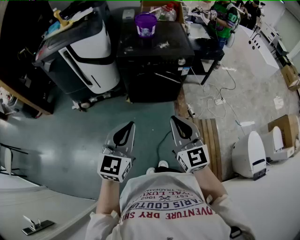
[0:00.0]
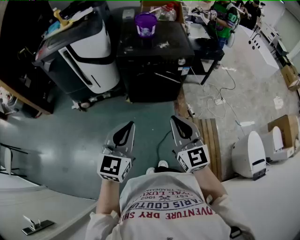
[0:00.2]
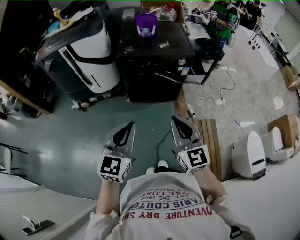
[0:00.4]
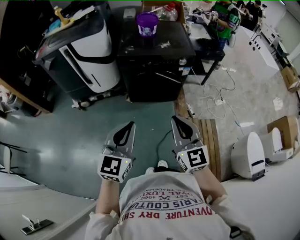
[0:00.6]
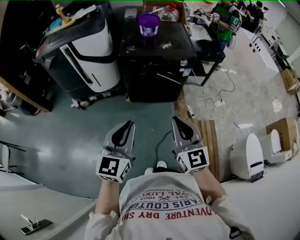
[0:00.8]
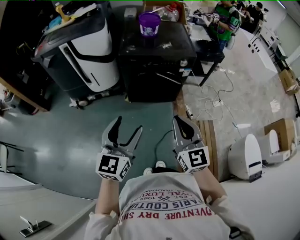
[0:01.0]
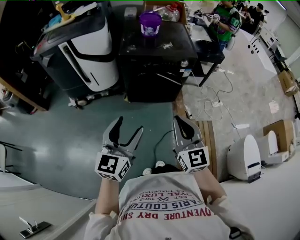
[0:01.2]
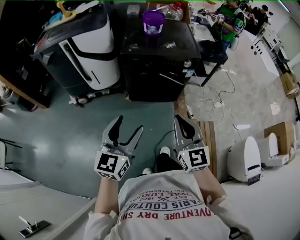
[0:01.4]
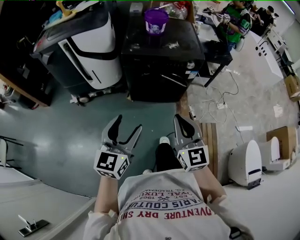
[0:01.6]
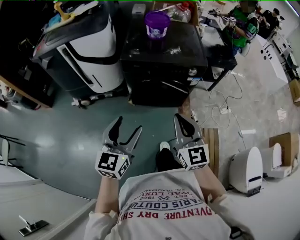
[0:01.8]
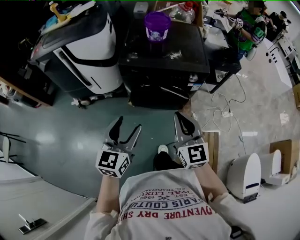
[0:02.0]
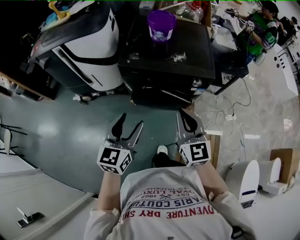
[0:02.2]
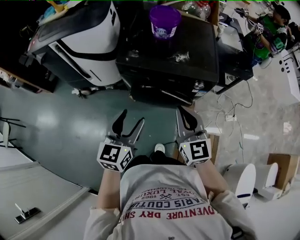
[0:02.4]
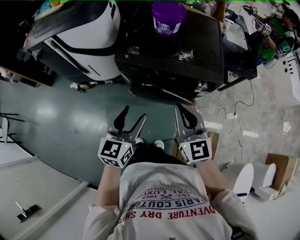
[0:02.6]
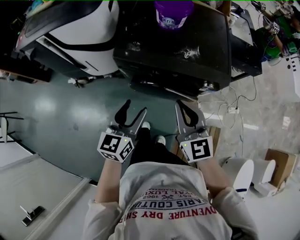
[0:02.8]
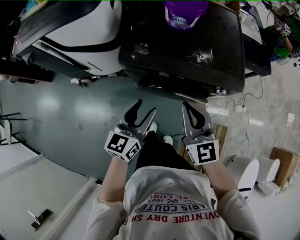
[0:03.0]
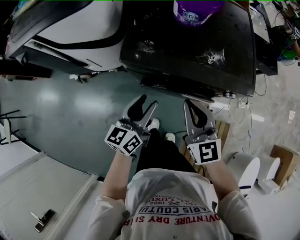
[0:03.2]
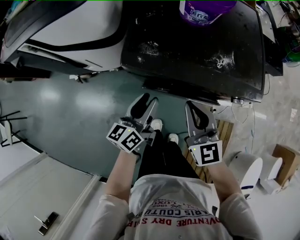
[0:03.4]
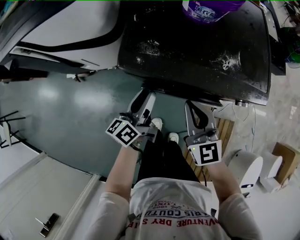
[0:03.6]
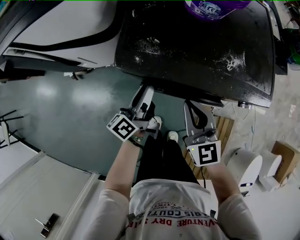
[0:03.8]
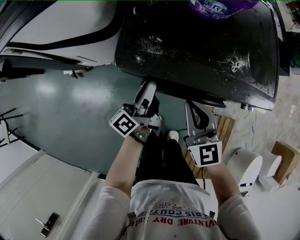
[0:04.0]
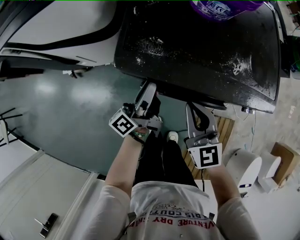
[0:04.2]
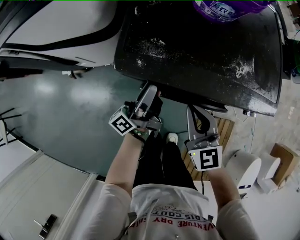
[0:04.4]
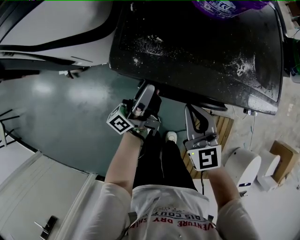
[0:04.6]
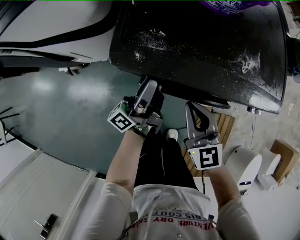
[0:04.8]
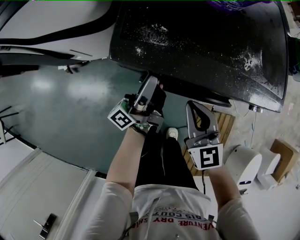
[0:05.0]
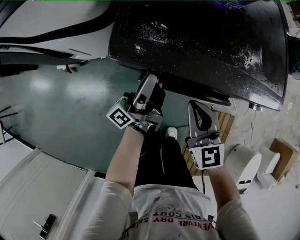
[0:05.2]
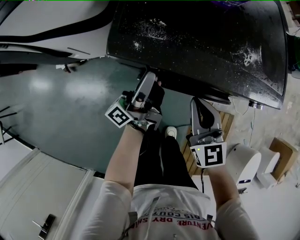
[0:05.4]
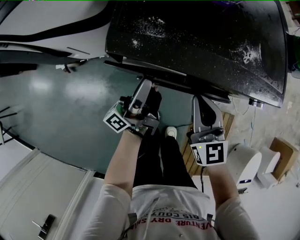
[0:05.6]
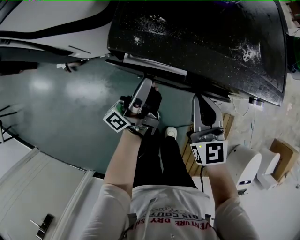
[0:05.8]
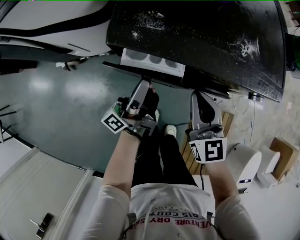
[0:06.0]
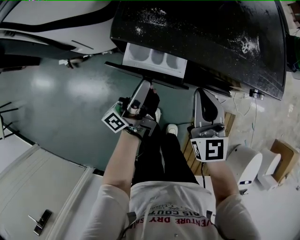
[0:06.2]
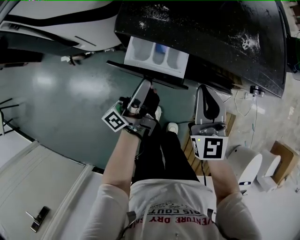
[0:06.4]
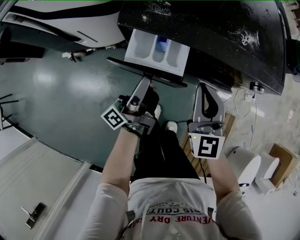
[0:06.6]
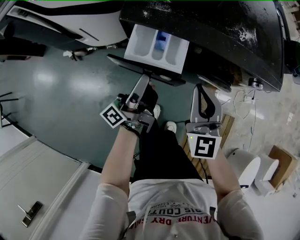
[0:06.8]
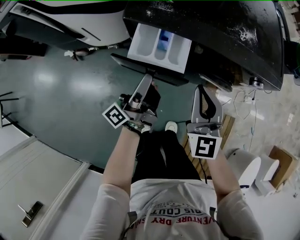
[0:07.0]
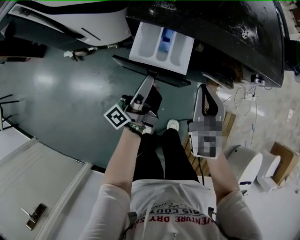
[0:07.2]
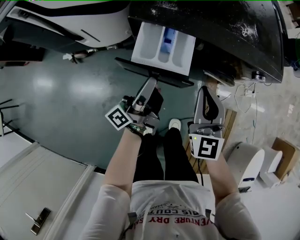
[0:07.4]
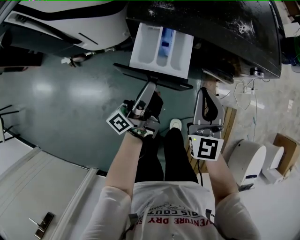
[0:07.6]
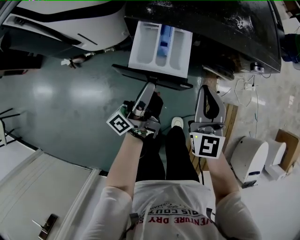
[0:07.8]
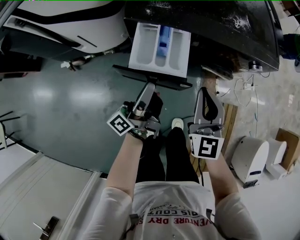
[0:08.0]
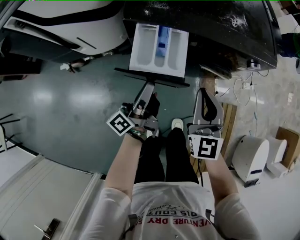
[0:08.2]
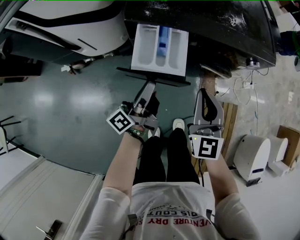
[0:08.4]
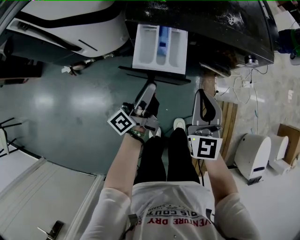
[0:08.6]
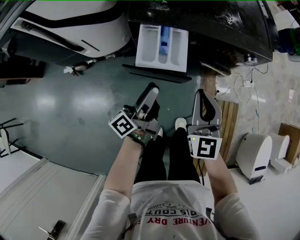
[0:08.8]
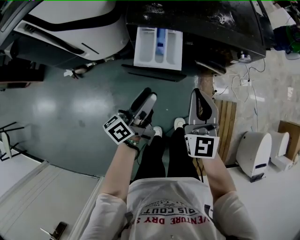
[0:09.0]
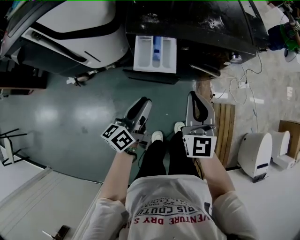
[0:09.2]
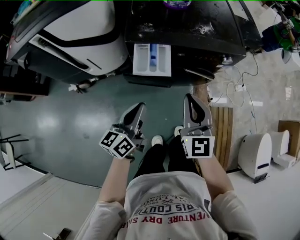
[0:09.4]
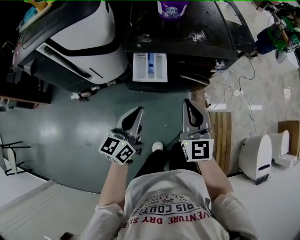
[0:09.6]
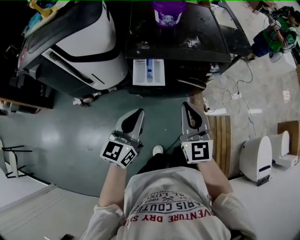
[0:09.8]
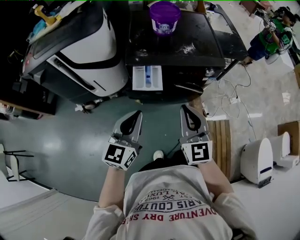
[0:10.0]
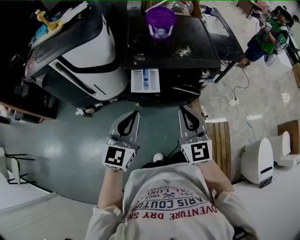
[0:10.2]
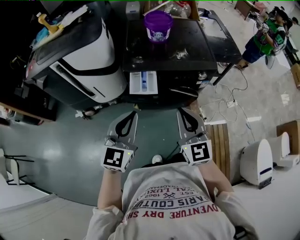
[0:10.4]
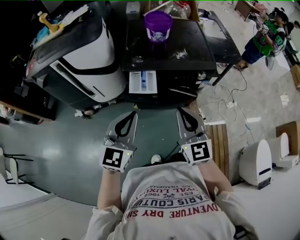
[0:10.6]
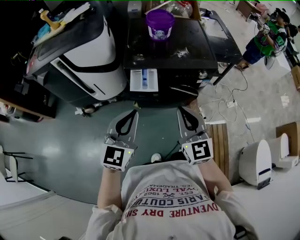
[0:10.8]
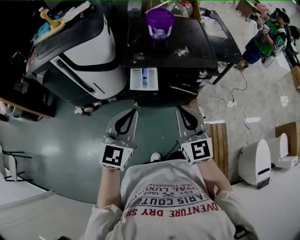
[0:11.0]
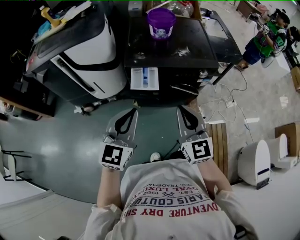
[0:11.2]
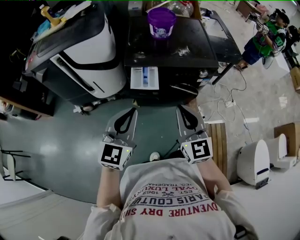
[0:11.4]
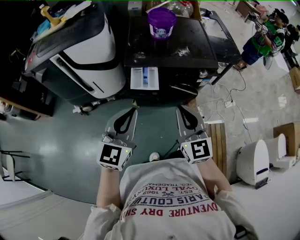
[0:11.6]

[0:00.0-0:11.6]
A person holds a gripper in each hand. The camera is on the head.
0:00.0 to 0:01.4: The left gripper ends up some 5 cm from where it was, and opens.
0:01.4 to 0:02.8: The two grippers go about 35 cm forward.
0:02.8 to 0:04.4: Both grippers travel together downward and forward, roughly 25 cm. The left gripper twists some 60 degrees counterclockwise, seen from behind.
0:04.4 to 0:05.8: The grippers make only small movements.
0:05.8 to 0:07.2: The grippers both shift backward by some 10 cm.
0:07.2 to 0:08.8: Both grippers move backward, roughly 5 cm. The left gripper opens up.
0:08.8 to 0:10.2: The right gripper heads upward and backward, covering about 20 cm; the left gripper shifts roughly 25 cm upward, rolls clockwise, seen from behind, by approximately 80 degrees, and closes.
0:10.2 to 0:11.6: The grippers move only a little.

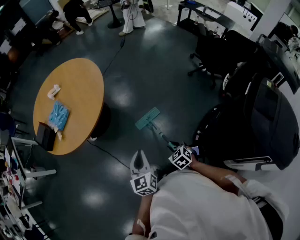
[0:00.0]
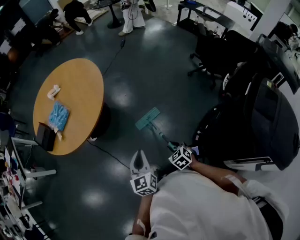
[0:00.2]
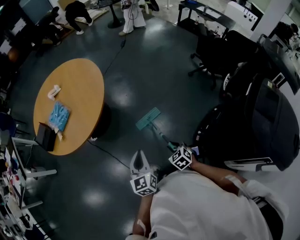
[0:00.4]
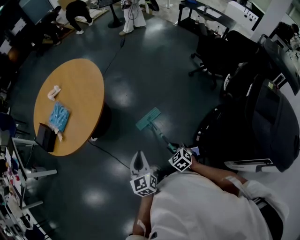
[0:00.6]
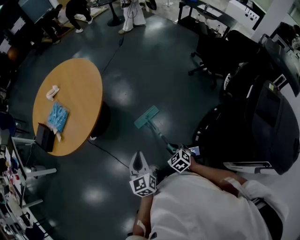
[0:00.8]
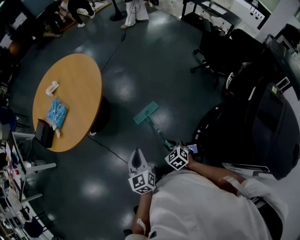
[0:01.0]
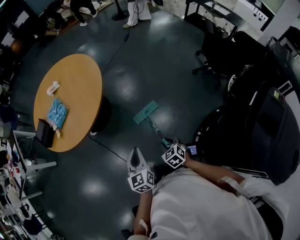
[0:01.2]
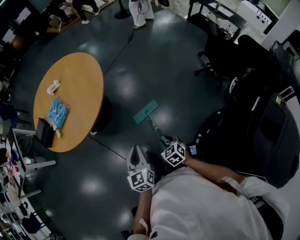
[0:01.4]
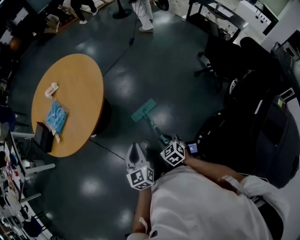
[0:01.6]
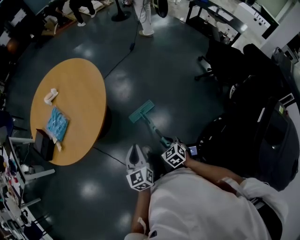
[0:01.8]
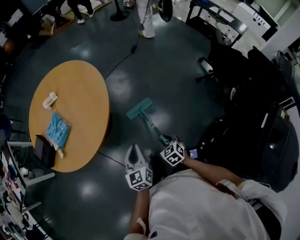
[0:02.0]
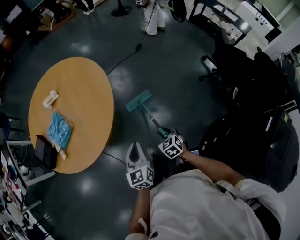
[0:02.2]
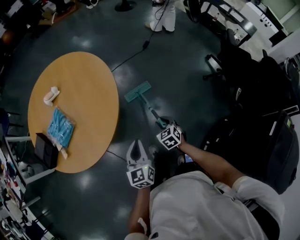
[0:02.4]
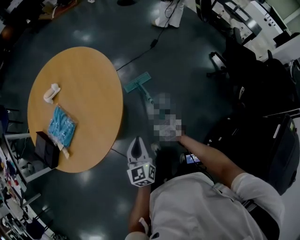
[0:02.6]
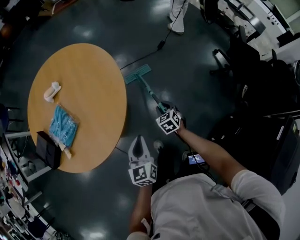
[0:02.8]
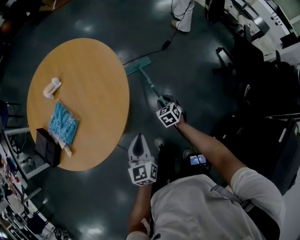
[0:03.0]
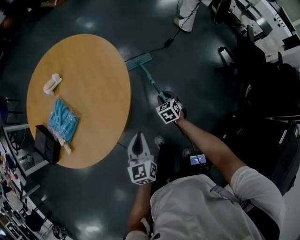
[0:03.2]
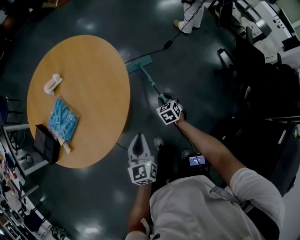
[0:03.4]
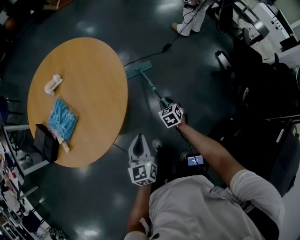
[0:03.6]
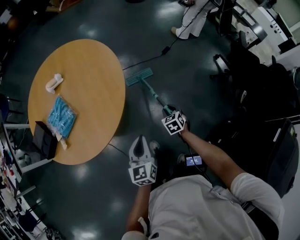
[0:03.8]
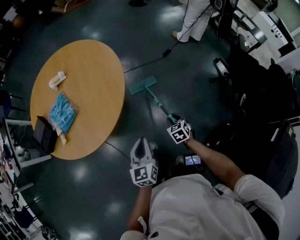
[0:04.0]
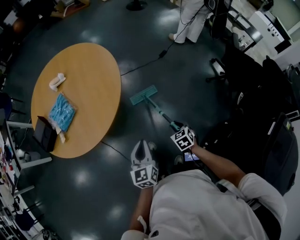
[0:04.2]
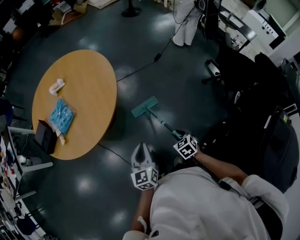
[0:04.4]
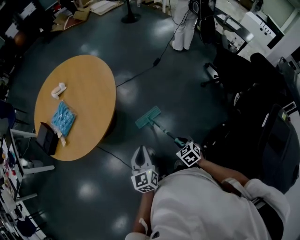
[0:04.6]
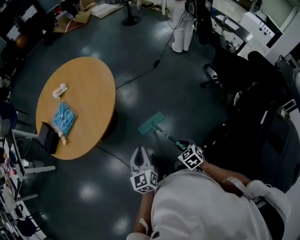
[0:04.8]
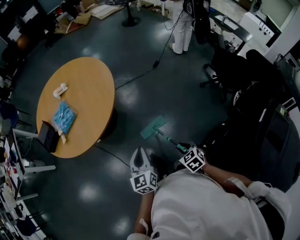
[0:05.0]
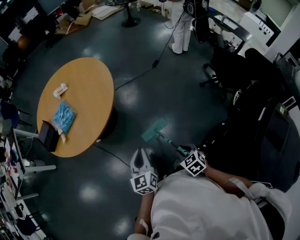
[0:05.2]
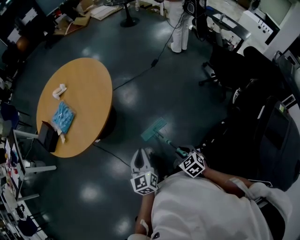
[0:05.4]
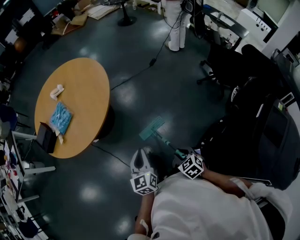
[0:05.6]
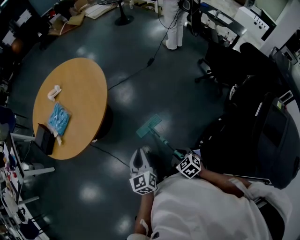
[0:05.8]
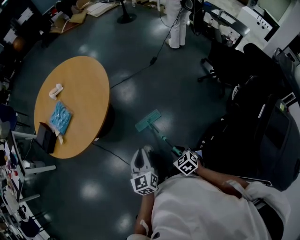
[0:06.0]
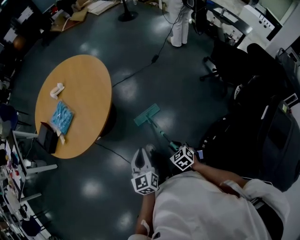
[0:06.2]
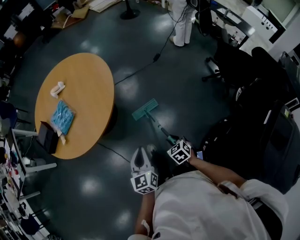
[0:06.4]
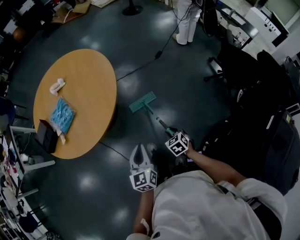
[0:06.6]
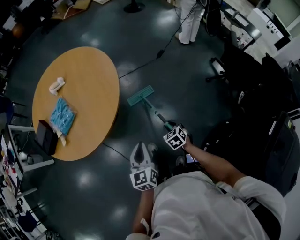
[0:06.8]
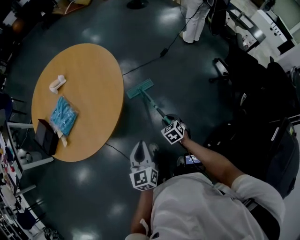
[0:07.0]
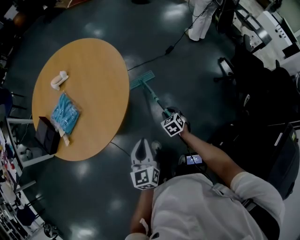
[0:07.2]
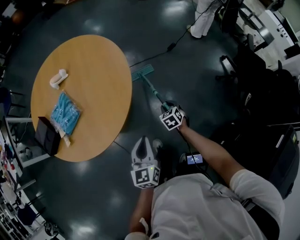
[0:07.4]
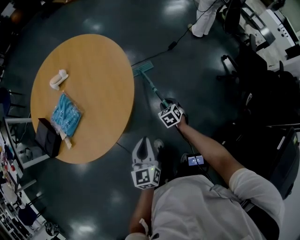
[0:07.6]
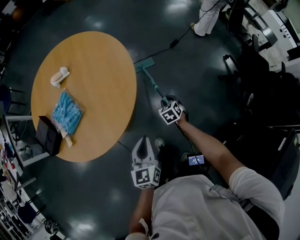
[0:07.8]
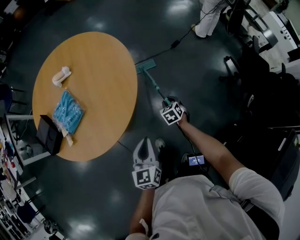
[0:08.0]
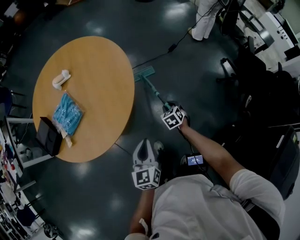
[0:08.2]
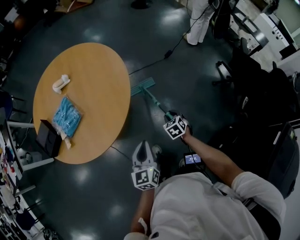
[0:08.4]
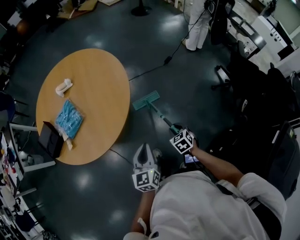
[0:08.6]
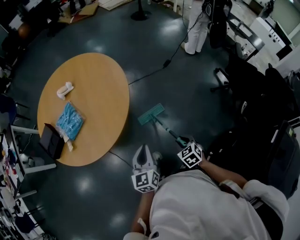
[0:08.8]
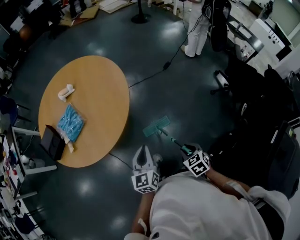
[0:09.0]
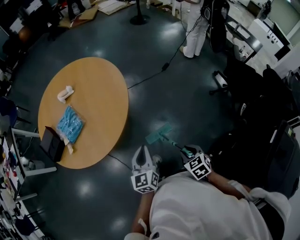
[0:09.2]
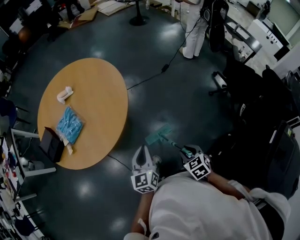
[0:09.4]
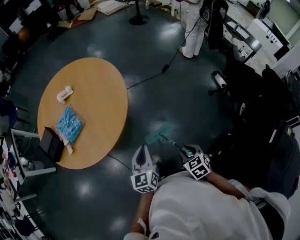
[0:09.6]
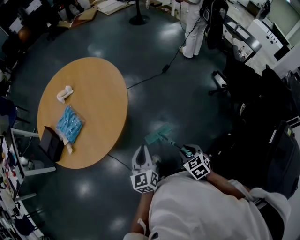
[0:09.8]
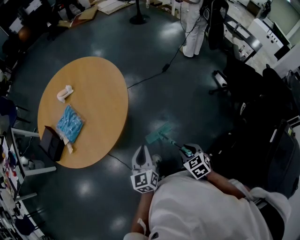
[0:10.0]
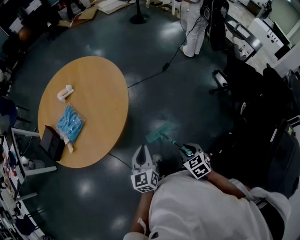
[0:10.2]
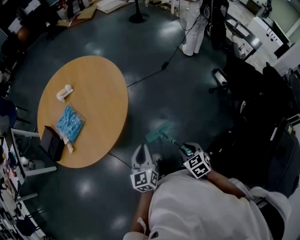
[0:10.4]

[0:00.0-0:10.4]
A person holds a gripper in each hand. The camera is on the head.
0:00.0 to 0:01.4: The grippers both shift forward by some 10 cm.
0:01.4 to 0:03.0: The right gripper is displaced forward by some 40 cm. Meanwhile the left gripper travels forward and to the left by about 30 cm.
0:03.0 to 0:04.4: The left gripper is displaced backward and to the right by about 20 cm. The right gripper is displaced backward by approximately 30 cm.
0:04.4 to 0:06.0: The left gripper shifts some 10 cm backward. The right gripper is displaced backward by roughly 15 cm.
0:06.0 to 0:07.4: The right gripper shifts some 40 cm forward. Meanwhile the left gripper travels forward and to the left by approximately 25 cm.
0:07.4 to 0:09.0: The right gripper is displaced backward and upward by roughly 30 cm; the left gripper shifts roughly 5 cm backward.
0:09.0 to 0:10.4: The grippers move only a little.

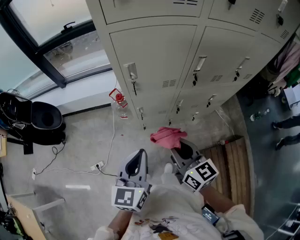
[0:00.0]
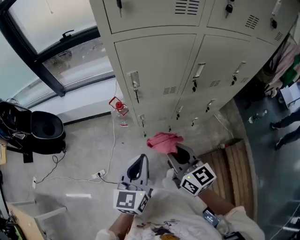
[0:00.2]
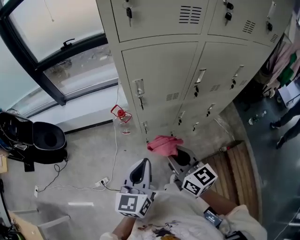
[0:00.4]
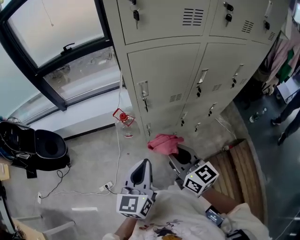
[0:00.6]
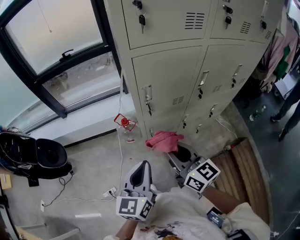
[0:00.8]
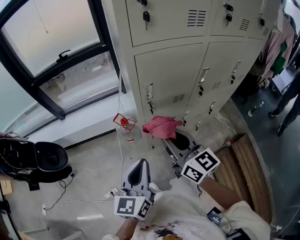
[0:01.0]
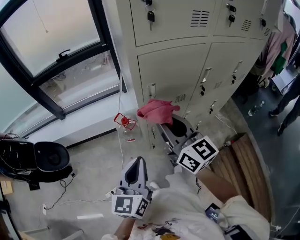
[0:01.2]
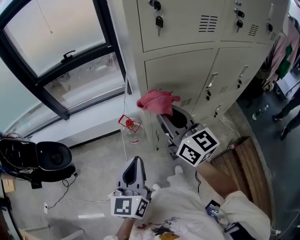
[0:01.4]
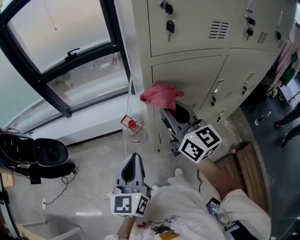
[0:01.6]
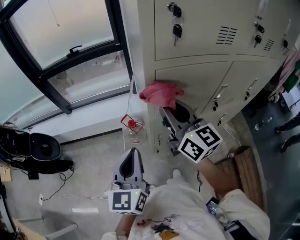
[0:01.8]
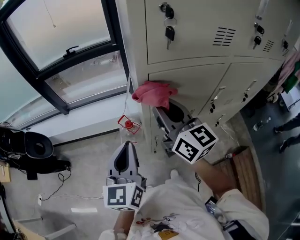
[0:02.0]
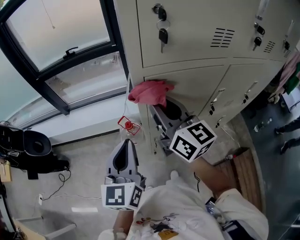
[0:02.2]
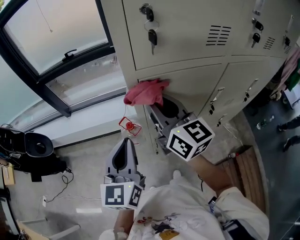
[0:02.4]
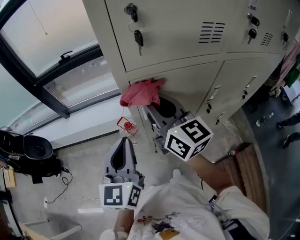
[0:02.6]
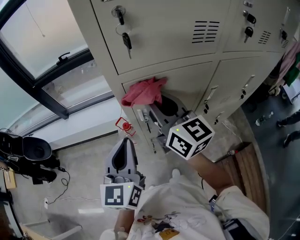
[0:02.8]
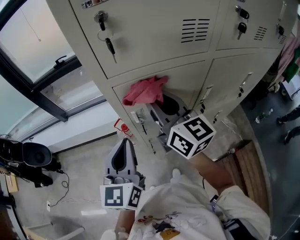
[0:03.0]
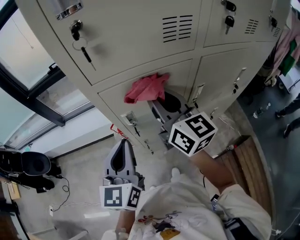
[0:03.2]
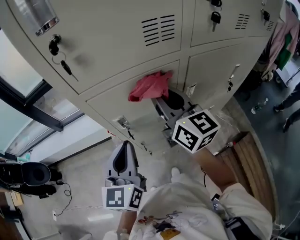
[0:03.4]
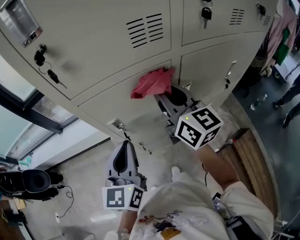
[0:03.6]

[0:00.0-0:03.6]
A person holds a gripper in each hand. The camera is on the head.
0:00.0 to 0:01.8: The left gripper moves to the left, forward and upward, approximately 20 cm. Meanwhile the right gripper heads forward, upward and to the left, covering approximately 30 cm.
0:01.8 to 0:03.6: The two grippers go about 20 cm to the right.
